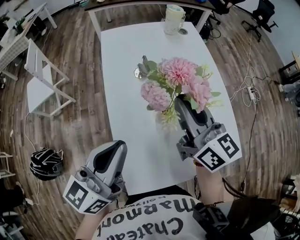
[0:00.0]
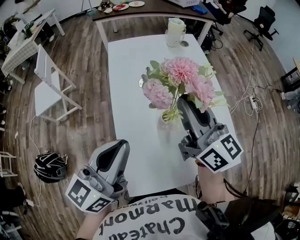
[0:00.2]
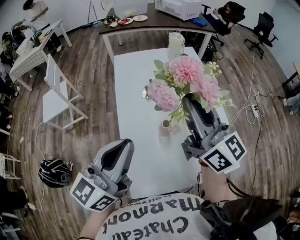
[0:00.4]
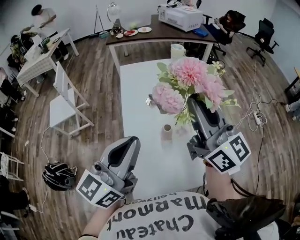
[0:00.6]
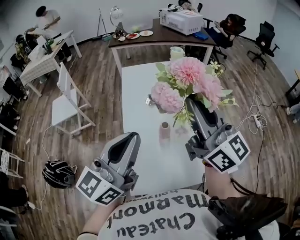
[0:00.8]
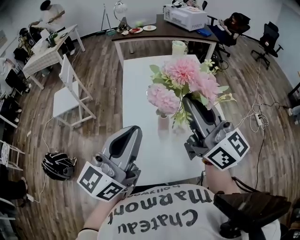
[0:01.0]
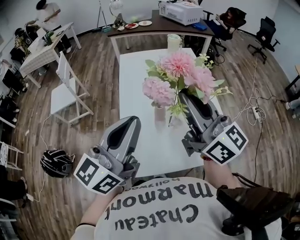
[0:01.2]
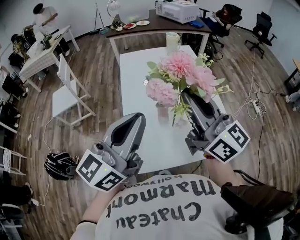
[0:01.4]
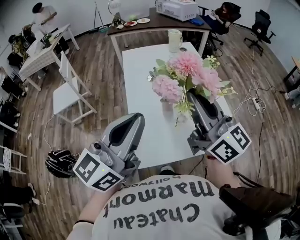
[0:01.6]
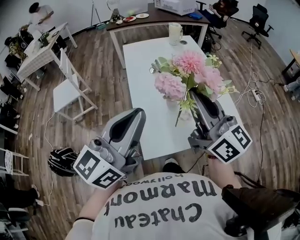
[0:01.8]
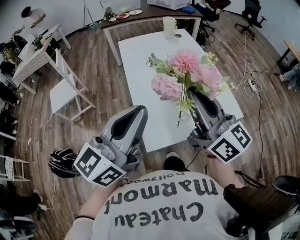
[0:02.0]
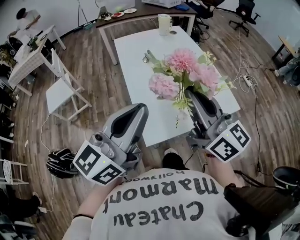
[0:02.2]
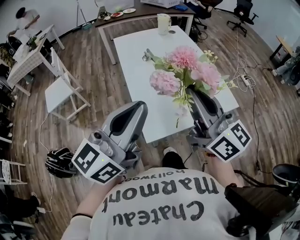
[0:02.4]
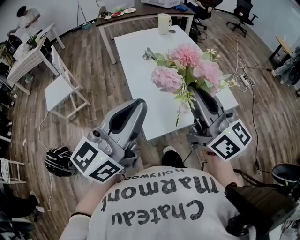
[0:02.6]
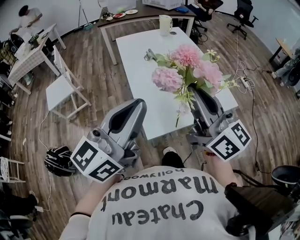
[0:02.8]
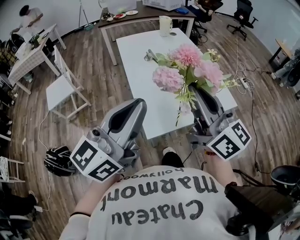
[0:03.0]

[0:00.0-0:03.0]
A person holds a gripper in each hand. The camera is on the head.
0:00.0 to 0:01.6: The left gripper goes about 20 cm upward and backward; the right gripper shifts some 20 cm backward and upward.
0:01.6 to 0:03.0: Both grippers move backward, approximately 10 cm.

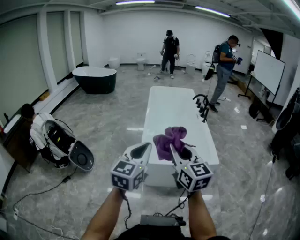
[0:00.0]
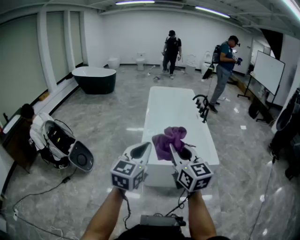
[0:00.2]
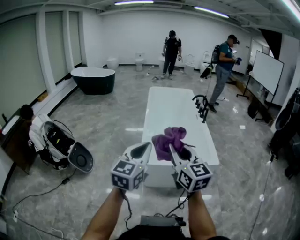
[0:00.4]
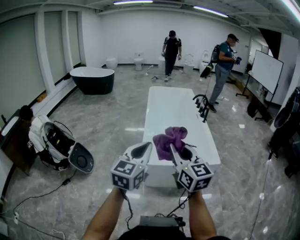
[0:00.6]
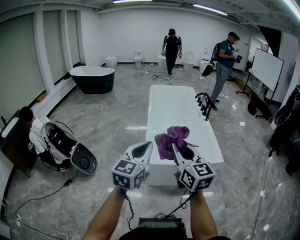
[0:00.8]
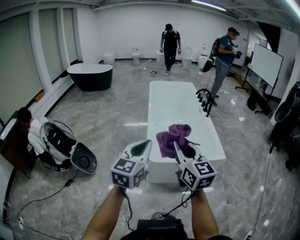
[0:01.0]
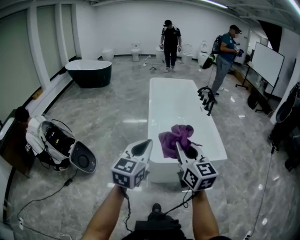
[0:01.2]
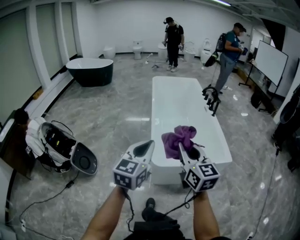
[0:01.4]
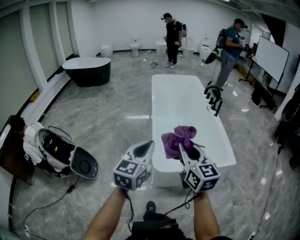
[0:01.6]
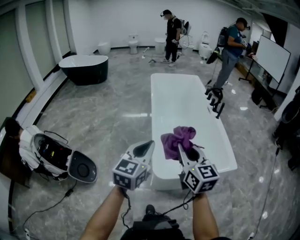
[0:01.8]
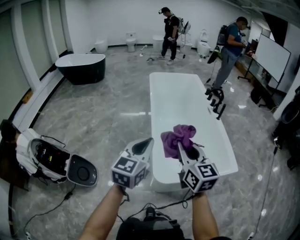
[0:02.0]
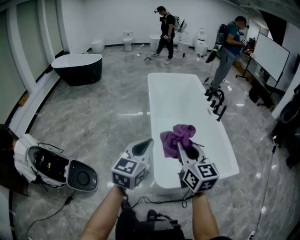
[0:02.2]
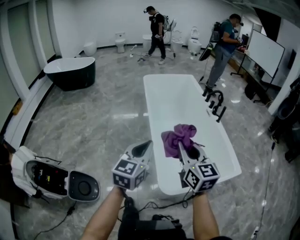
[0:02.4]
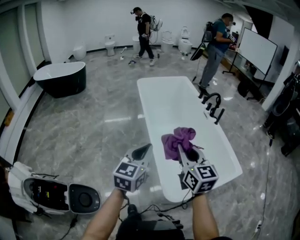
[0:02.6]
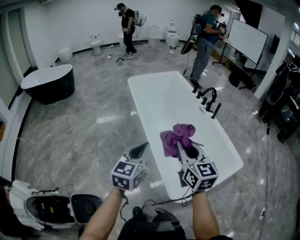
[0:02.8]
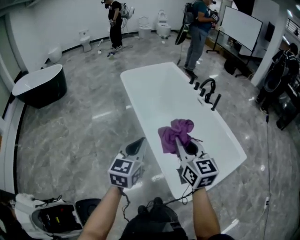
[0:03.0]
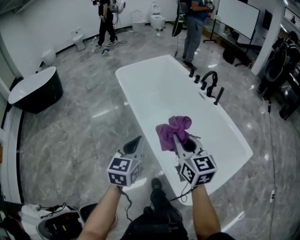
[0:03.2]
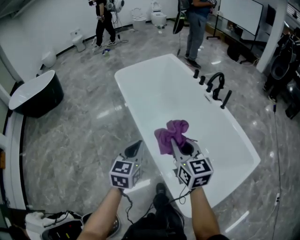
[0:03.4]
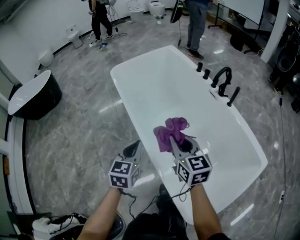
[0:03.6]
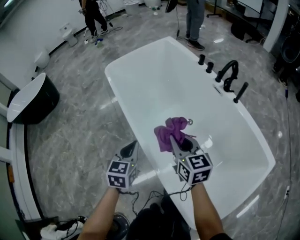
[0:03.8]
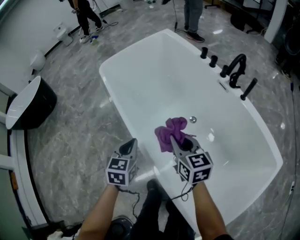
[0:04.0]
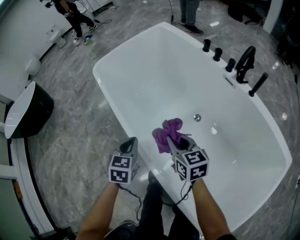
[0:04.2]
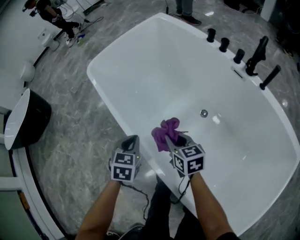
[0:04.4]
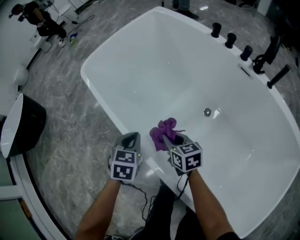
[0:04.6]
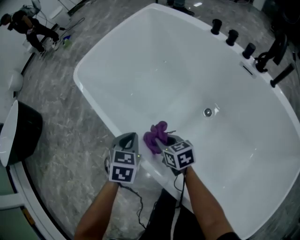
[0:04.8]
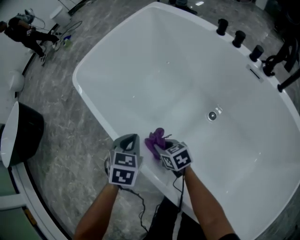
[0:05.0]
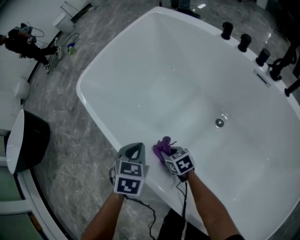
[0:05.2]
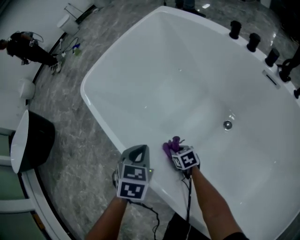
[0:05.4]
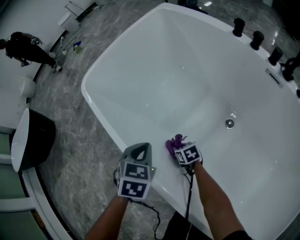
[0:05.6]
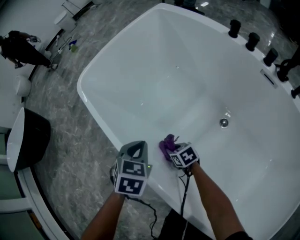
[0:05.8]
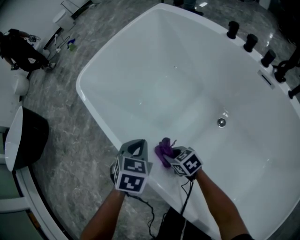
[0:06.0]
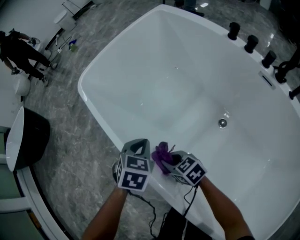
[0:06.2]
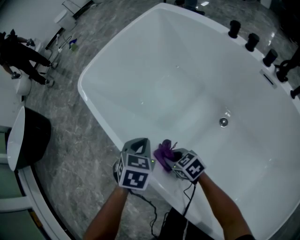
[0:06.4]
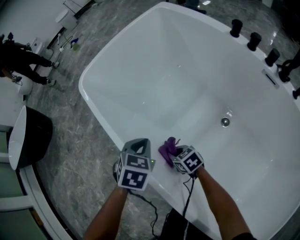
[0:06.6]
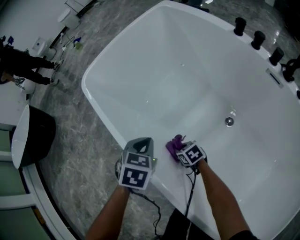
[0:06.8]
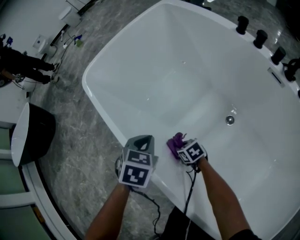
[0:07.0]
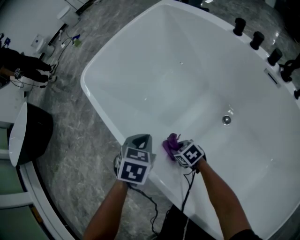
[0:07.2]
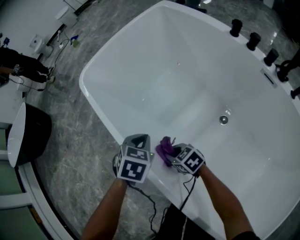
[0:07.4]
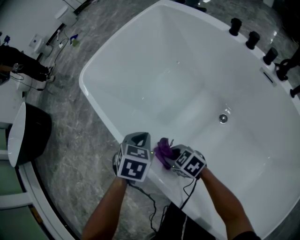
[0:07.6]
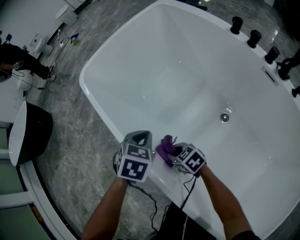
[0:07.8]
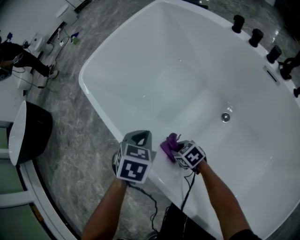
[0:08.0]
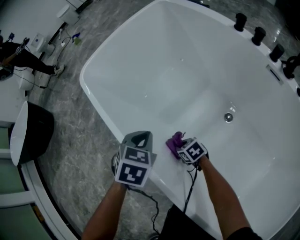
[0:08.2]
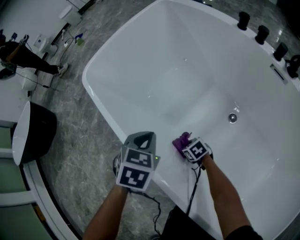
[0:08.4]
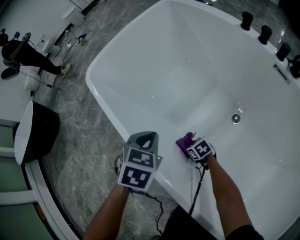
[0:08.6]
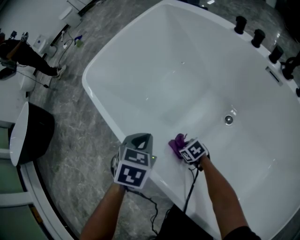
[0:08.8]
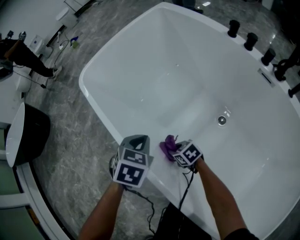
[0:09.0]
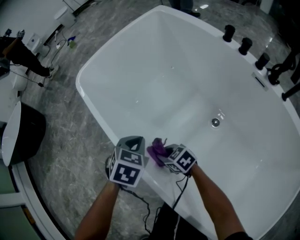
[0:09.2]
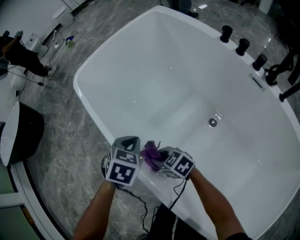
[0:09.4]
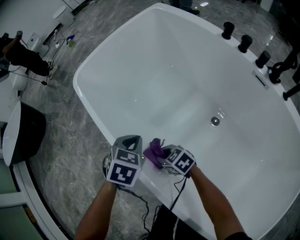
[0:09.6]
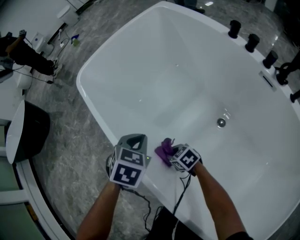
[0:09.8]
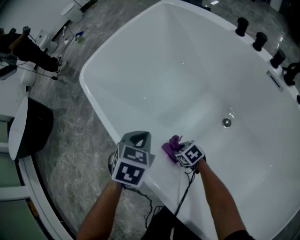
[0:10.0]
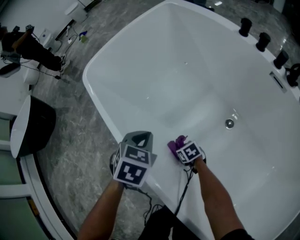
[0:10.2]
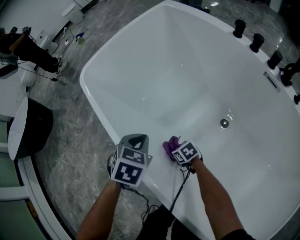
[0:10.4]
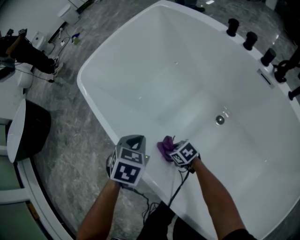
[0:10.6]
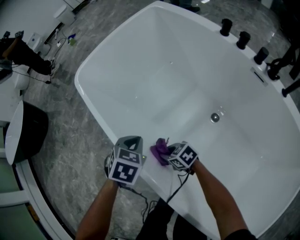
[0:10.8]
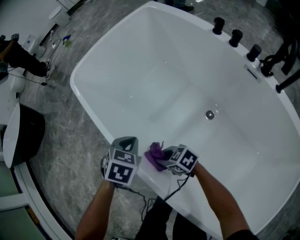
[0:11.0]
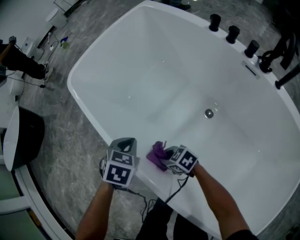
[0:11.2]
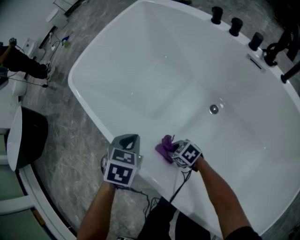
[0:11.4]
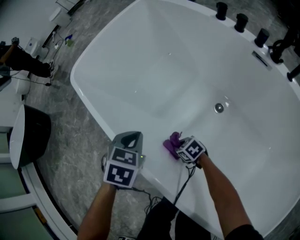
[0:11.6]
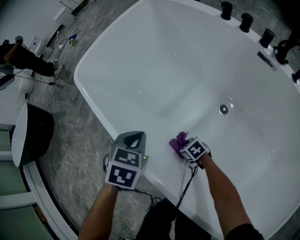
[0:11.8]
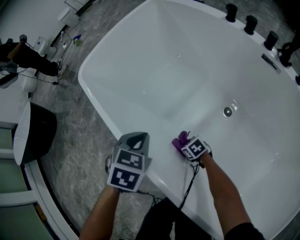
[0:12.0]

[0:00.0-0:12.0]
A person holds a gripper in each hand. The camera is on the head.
0:00.0 to 0:01.6: Both grippers travel together forward and to the left, some 20 cm.
0:01.6 to 0:03.0: The two grippers travel together, forward and to the left, about 40 cm. The right gripper changes its angle by roughly 20 degrees.
0:03.0 to 0:04.4: The two grippers travel together, forward, approximately 50 cm. Both grippers travel together downward, roughly 40 cm. The right gripper swivels about 30 degrees. The left gripper points its fingers roughly 40 degrees further downward.
0:04.4 to 0:06.0: The left gripper heads forward and downward, covering about 15 cm, while the right gripper moves downward, forward and to the left, approximately 25 cm, and turns by some 30 degrees.
0:06.0 to 0:07.6: The right gripper swings up and down, about 15 cm each way, with 2 reversals.
0:07.6 to 0:09.0: The right gripper travels downward by roughly 10 cm.
0:09.0 to 0:10.4: The right gripper moves approximately 10 cm upward and comes back.
0:10.4 to 0:12.0: The right gripper moves approximately 15 cm upward and comes back.

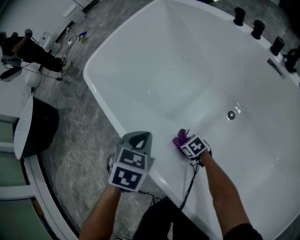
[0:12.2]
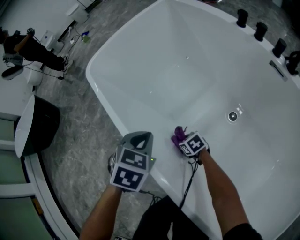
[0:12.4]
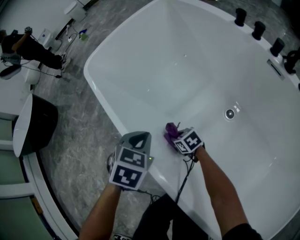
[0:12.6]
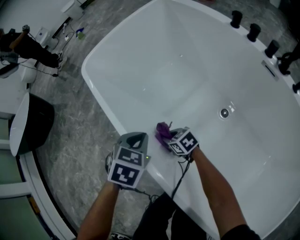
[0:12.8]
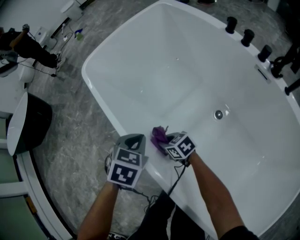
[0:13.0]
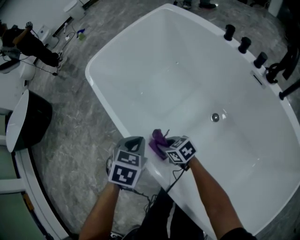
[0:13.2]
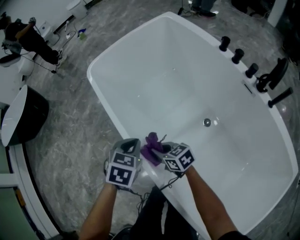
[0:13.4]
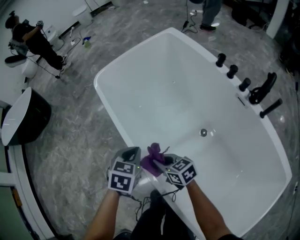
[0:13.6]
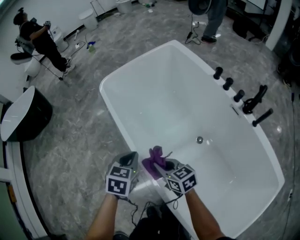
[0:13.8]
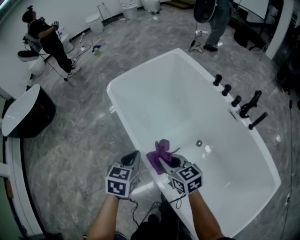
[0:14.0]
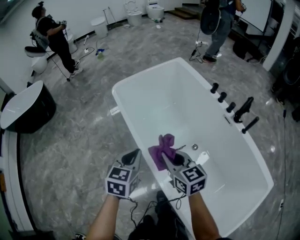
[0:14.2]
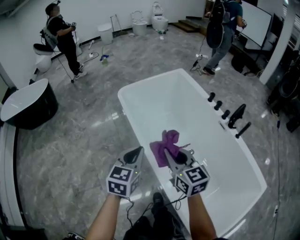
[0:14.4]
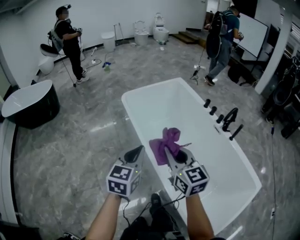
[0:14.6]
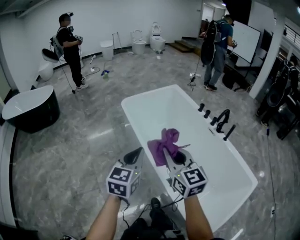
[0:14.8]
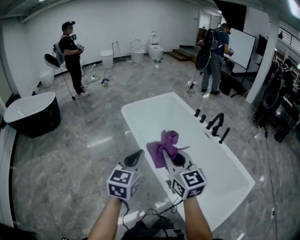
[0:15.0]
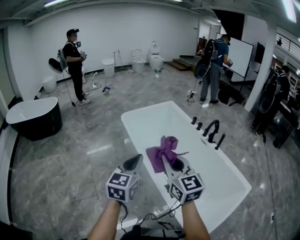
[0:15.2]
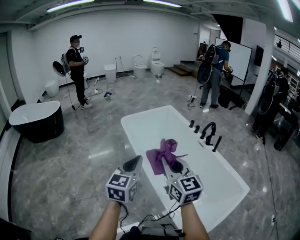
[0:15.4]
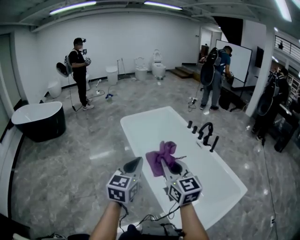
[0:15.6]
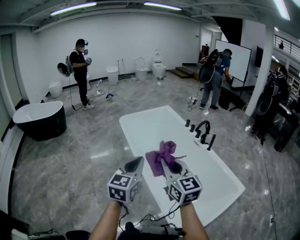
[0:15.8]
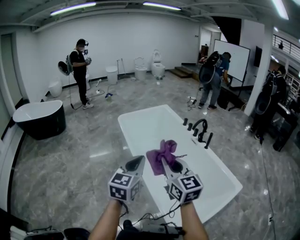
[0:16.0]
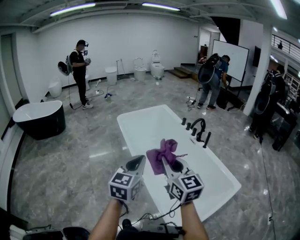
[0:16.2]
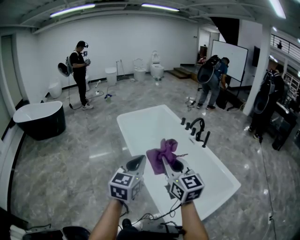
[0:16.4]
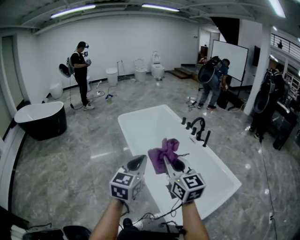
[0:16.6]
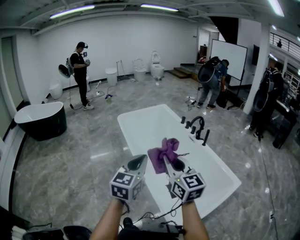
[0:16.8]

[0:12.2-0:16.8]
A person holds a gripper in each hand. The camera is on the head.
0:12.2 to 0:13.8: The left gripper goes some 20 cm upward and backward, and turns by approximately 20 degrees; the right gripper shifts some 40 cm upward, and turns by roughly 30 degrees.
0:13.8 to 0:15.2: The left gripper goes roughly 50 cm backward and upward, and tilts its fingers approximately 40 degrees upward. Meanwhile the right gripper is displaced upward and backward by about 50 cm, and rotates about 40 degrees.
0:15.2 to 0:16.8: The two grippers go roughly 20 cm backward and to the right.

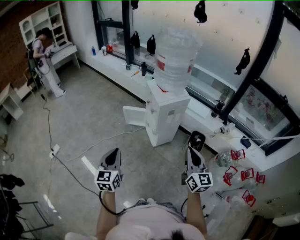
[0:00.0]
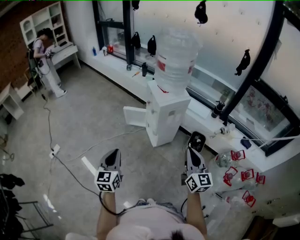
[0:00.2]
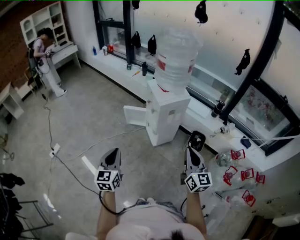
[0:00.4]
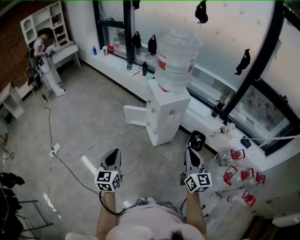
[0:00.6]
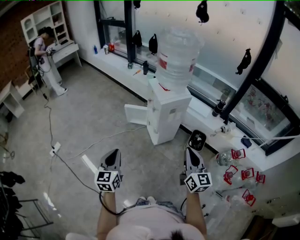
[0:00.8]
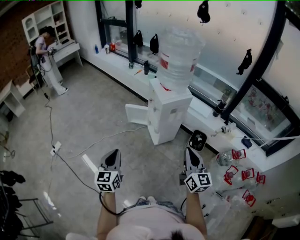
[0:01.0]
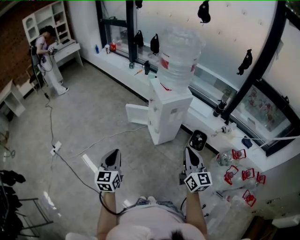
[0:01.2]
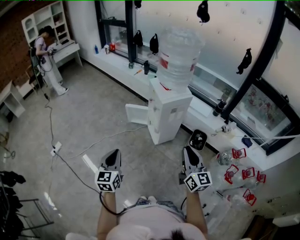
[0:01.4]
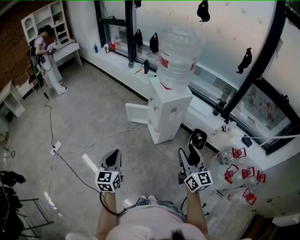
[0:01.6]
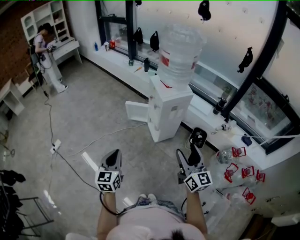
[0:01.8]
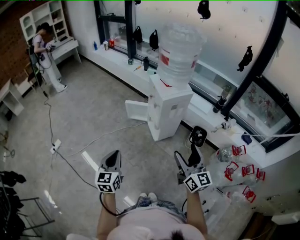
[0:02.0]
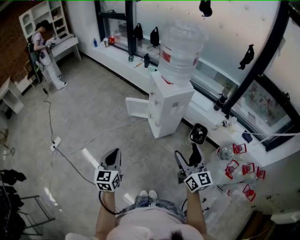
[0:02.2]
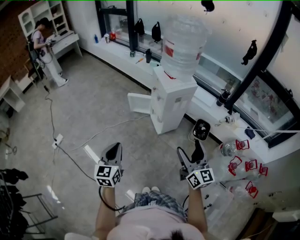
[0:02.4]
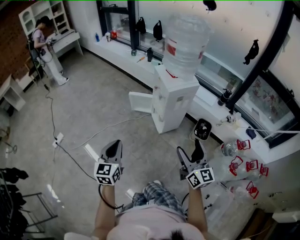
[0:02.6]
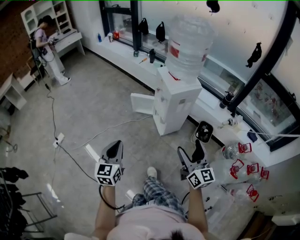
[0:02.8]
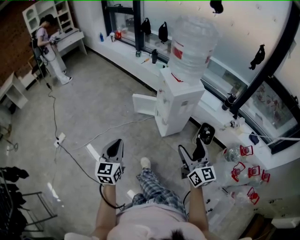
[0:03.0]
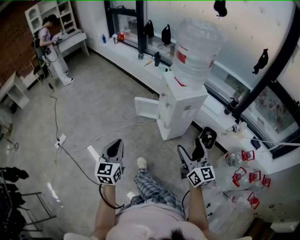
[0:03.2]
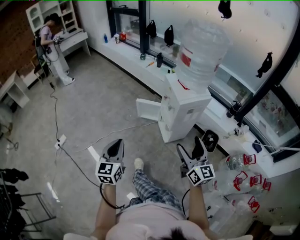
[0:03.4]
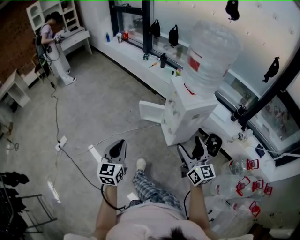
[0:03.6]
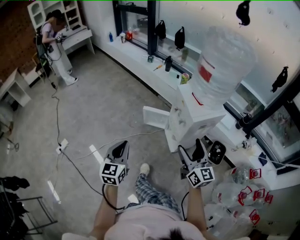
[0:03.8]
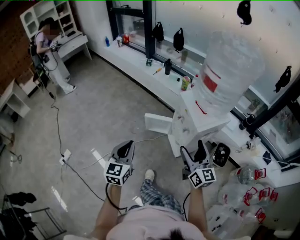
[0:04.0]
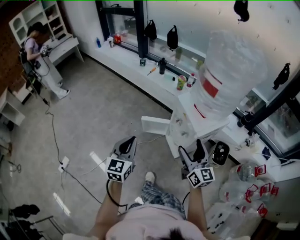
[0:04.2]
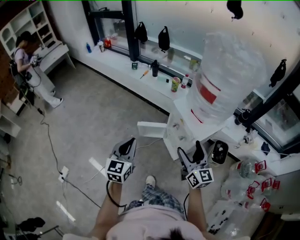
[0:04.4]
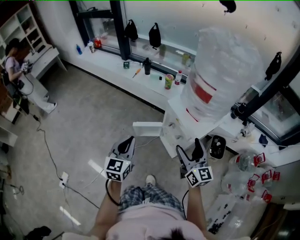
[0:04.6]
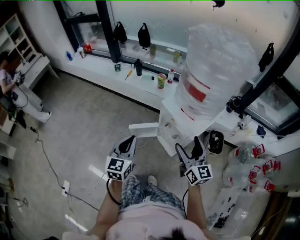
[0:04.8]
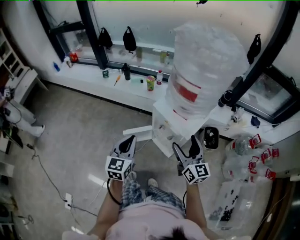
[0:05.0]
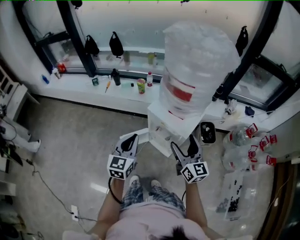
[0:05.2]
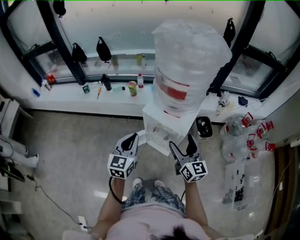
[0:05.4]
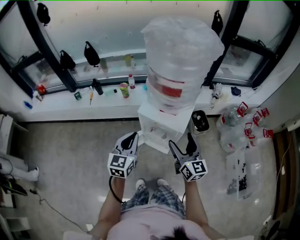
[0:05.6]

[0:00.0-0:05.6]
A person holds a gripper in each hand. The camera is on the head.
0:00.0 to 0:01.4: There are only small adjustments of the grippers.
0:01.4 to 0:02.8: The right gripper opens up.
0:02.8 to 0:04.2: Both grippers travel together forward, some 35 cm.
0:04.2 to 0:05.6: The right gripper moves about 10 cm, and changes its angle by approximately 40 degrees, while the left gripper changes place by about 25 cm, and turns by roughly 40 degrees.
